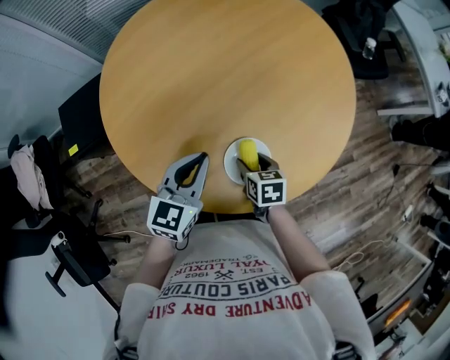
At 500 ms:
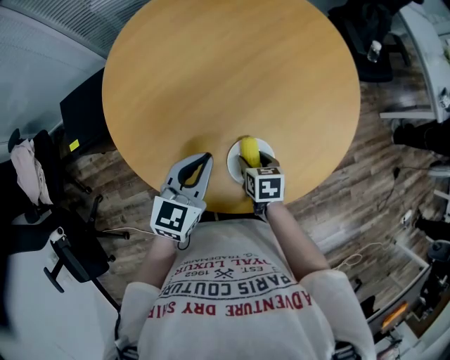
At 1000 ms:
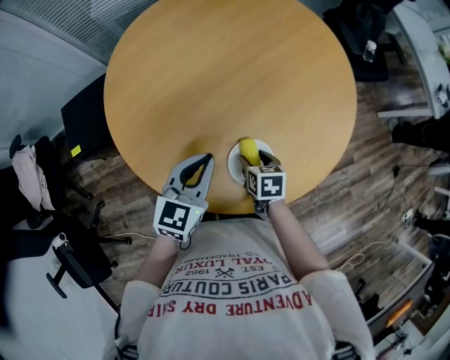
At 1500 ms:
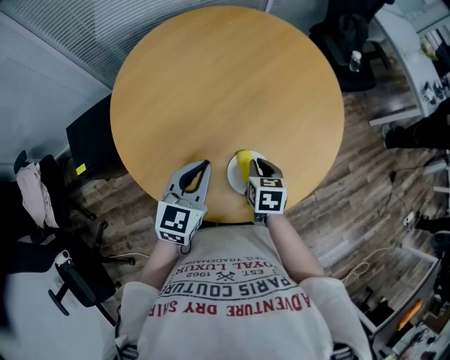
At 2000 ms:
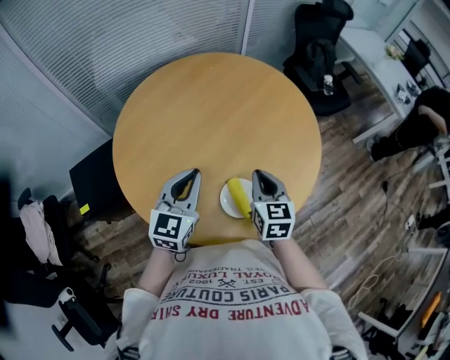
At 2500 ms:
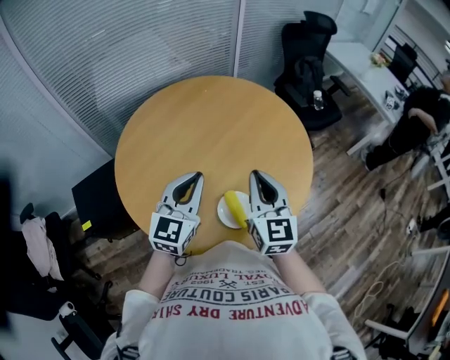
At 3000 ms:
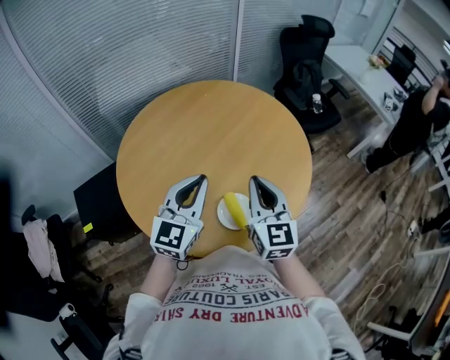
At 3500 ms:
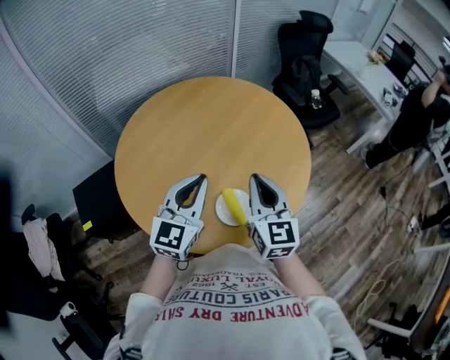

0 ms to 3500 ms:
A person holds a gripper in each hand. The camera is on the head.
0 ms to 2000 ms: The right gripper shifts roughly 20 cm upward, rotates about 40 degrees, and closes up. Meanwhile the left gripper is displaced upward by some 10 cm.
2000 ms to 3500 ms: The right gripper heads upward, covering roughly 10 cm. The left gripper heads upward and to the right, covering roughly 10 cm.

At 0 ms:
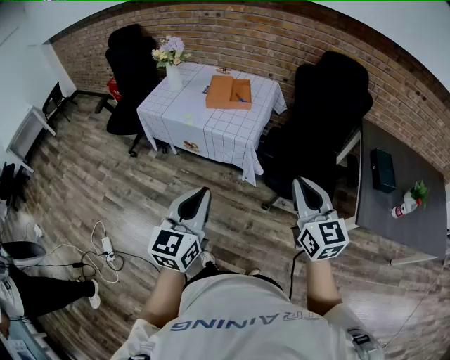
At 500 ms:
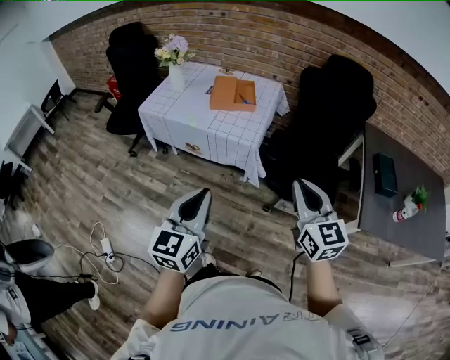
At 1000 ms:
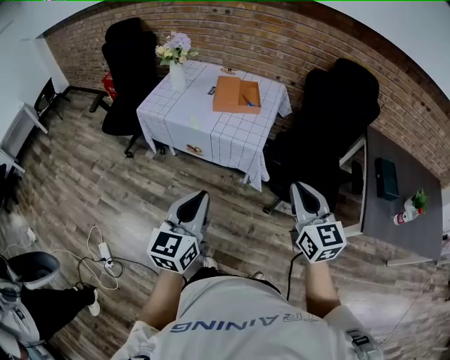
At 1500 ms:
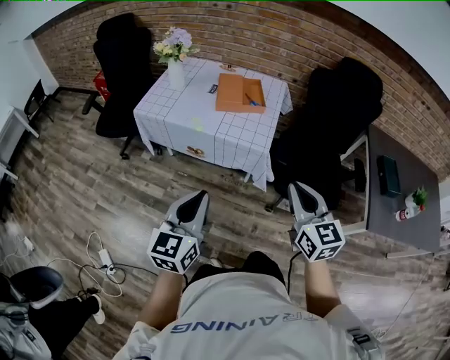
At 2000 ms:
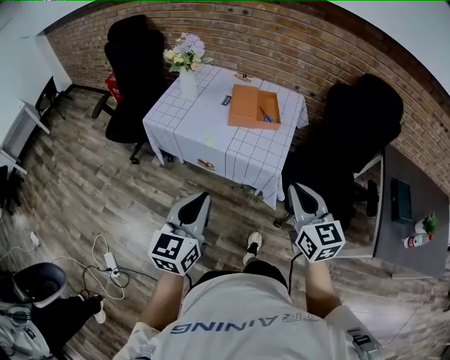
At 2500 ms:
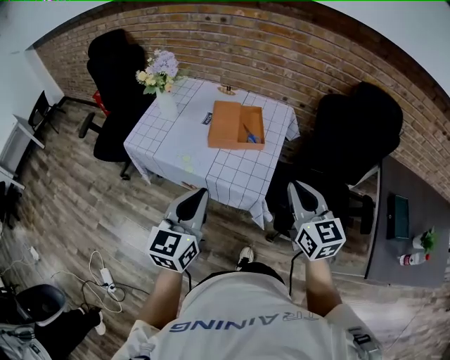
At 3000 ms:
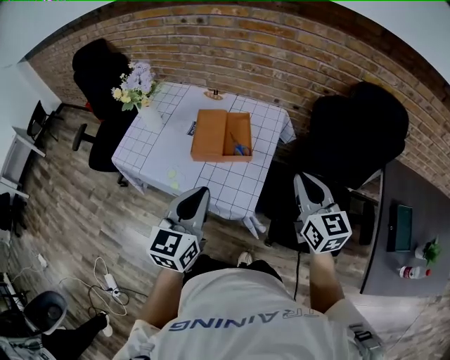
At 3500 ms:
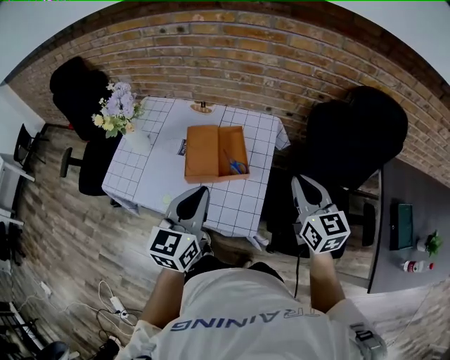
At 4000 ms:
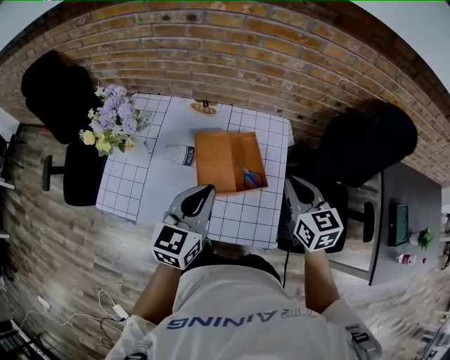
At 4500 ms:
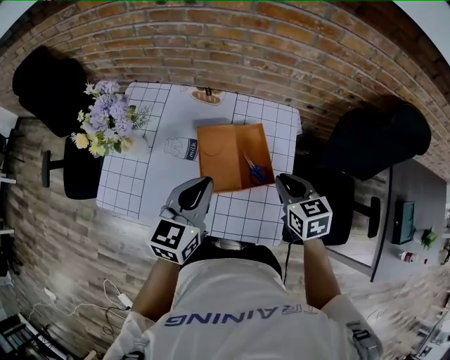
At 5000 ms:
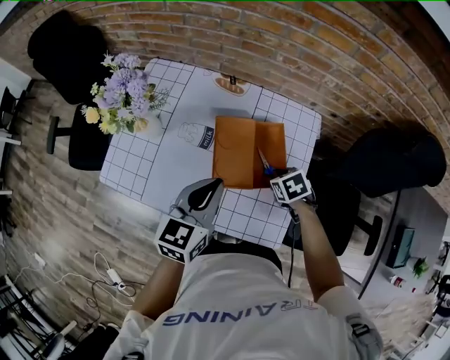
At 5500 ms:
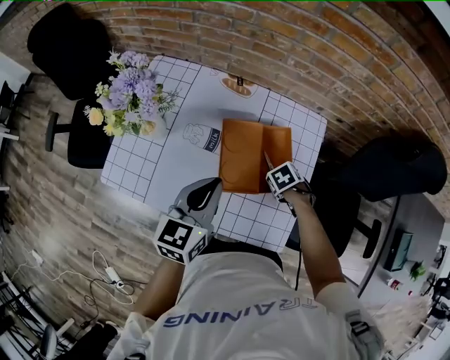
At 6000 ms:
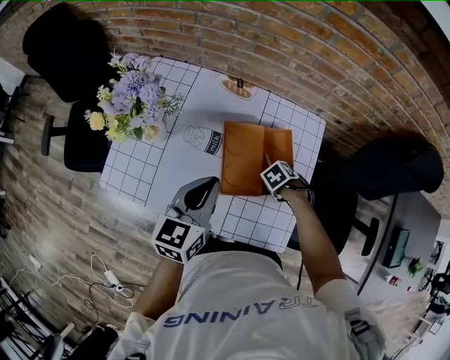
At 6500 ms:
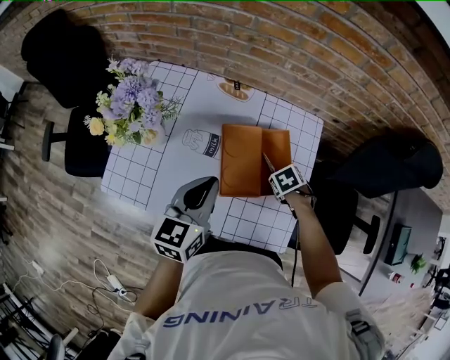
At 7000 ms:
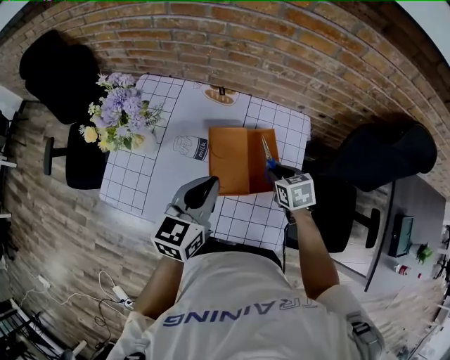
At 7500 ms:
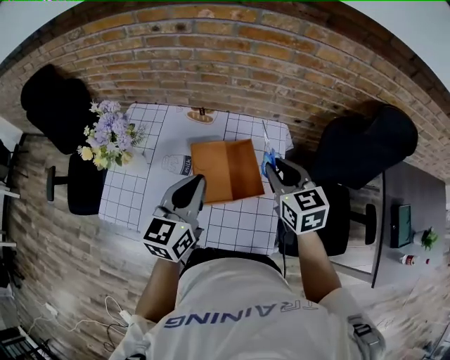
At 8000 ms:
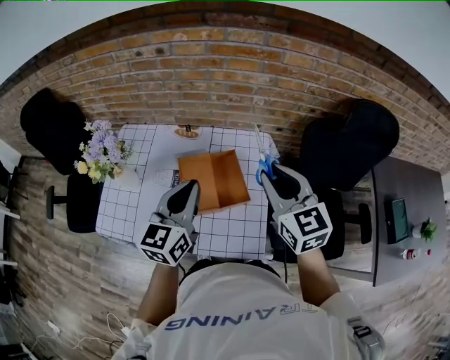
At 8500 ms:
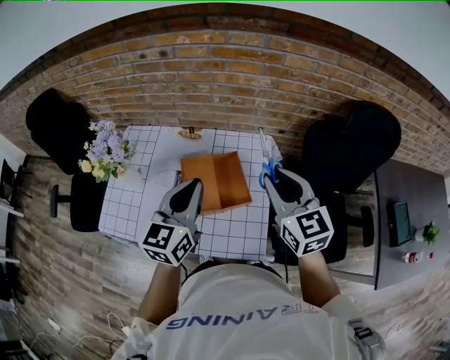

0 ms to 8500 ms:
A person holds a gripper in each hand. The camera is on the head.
0 ms to 2000 ms: The grippers both shift forward and to the left by roughly 25 cm.
2000 ms to 4000 ms: Both grippers are carried forward, approximately 40 cm.
4000 ms to 6500 ms: The left gripper shifts by some 10 cm. The right gripper heads downward, covering roughly 30 cm, angles its fingers downward, by approximately 60 degrees, and opens.
6500 ms to 8500 ms: The right gripper shifts about 40 cm upward, and angles its fingers upward, by about 70 degrees; the left gripper travels upward by about 15 cm.

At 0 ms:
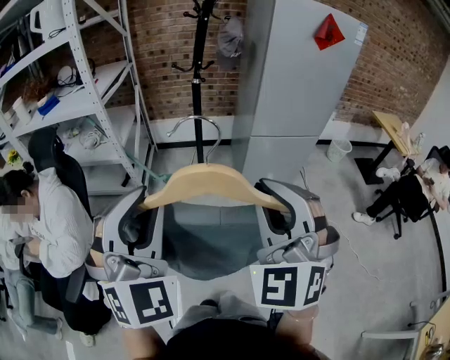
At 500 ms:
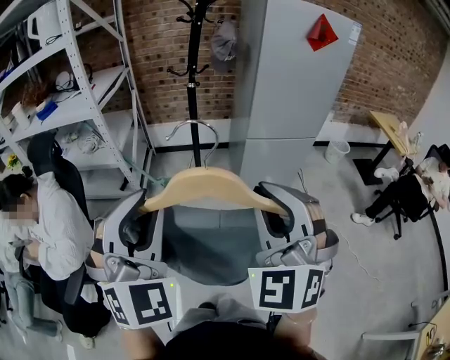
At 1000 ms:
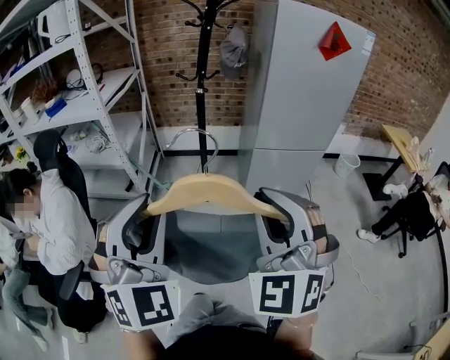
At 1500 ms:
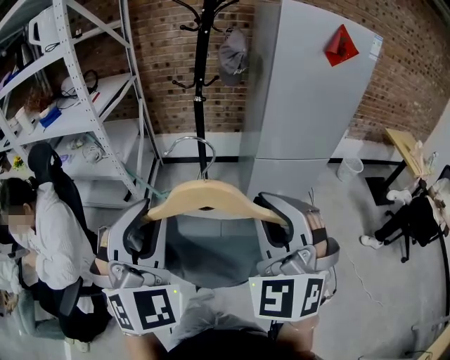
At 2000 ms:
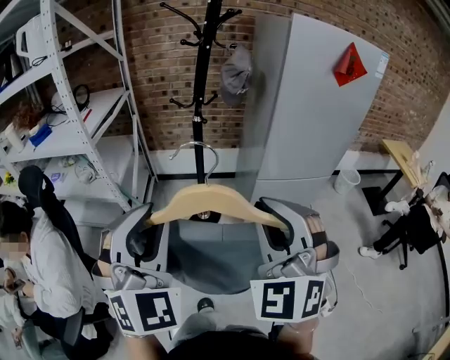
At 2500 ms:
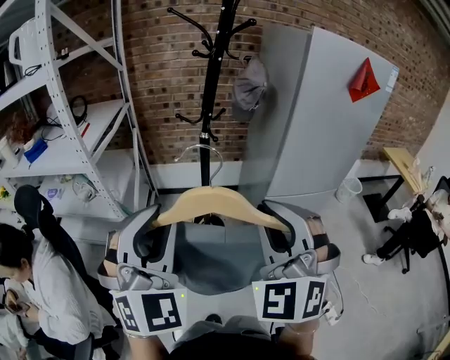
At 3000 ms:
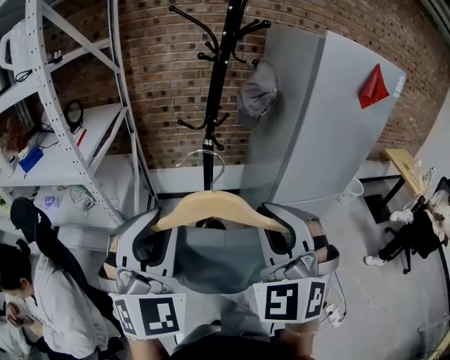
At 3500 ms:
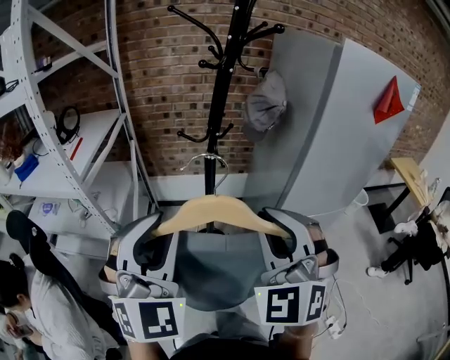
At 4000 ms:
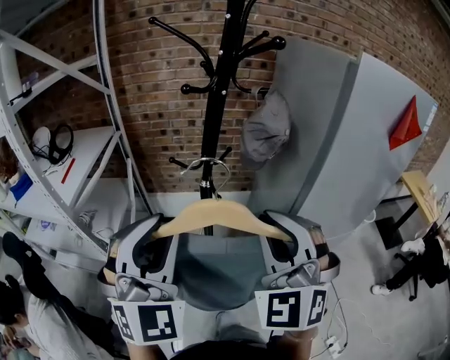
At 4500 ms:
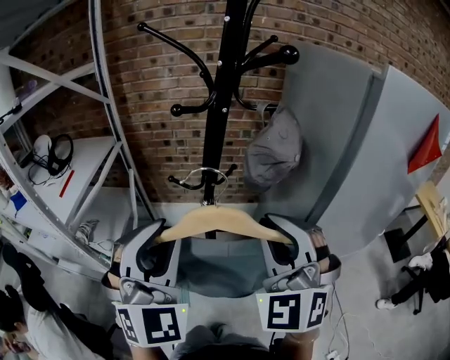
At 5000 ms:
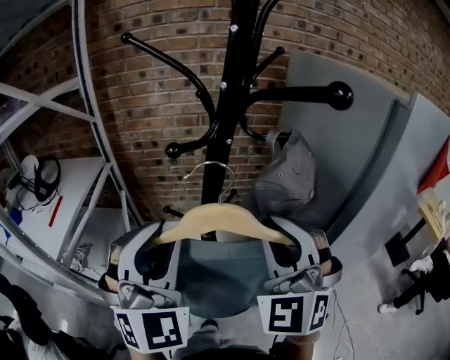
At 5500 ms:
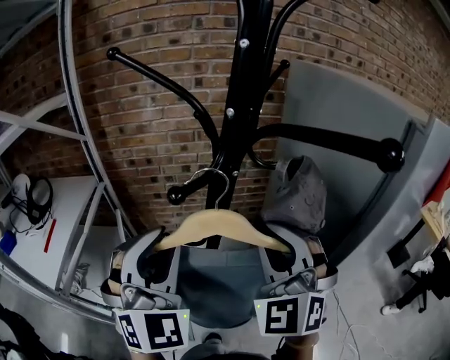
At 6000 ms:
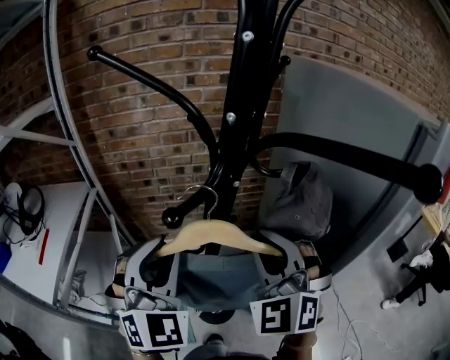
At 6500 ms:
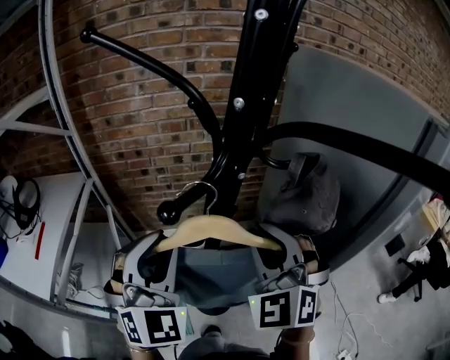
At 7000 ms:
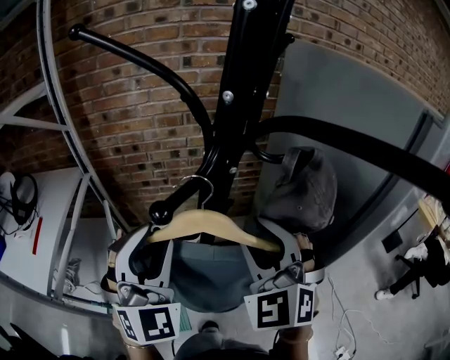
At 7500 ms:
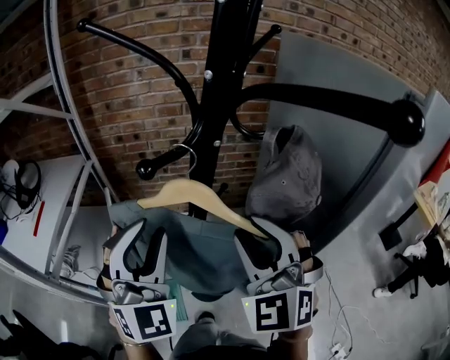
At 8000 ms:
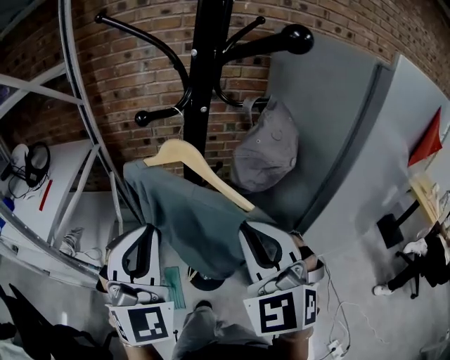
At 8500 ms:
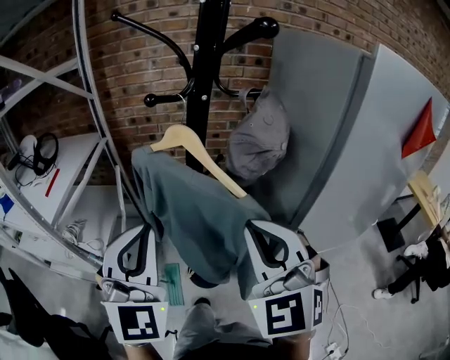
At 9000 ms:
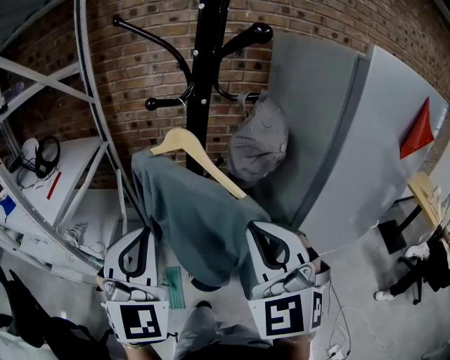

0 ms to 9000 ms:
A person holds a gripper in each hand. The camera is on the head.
0 ms to 2000 ms: The two grippers go some 20 cm forward.
2000 ms to 4500 ms: Both grippers move forward, roughly 40 cm.
4500 ms to 7000 ms: Both grippers travel together forward, about 20 cm. The right gripper opens up.
7000 ms to 9000 ms: The two grippers go some 20 cm backward. The right gripper closes, while the left gripper closes up.

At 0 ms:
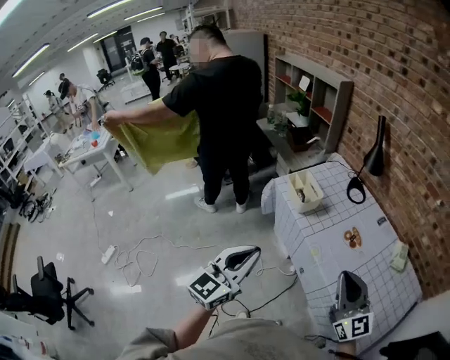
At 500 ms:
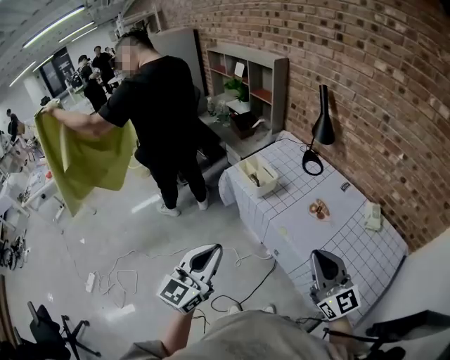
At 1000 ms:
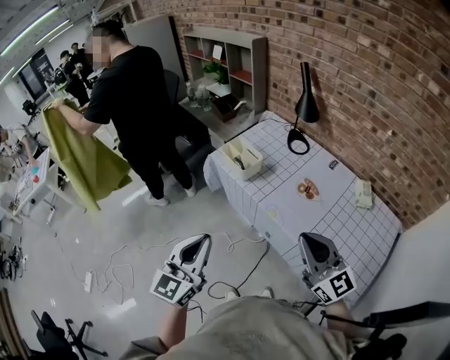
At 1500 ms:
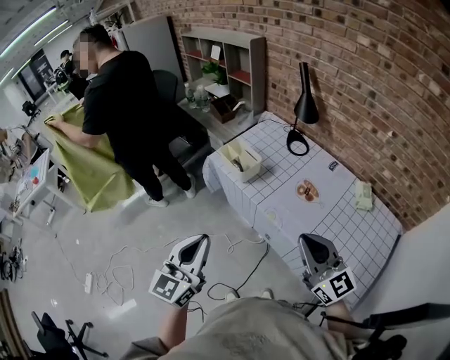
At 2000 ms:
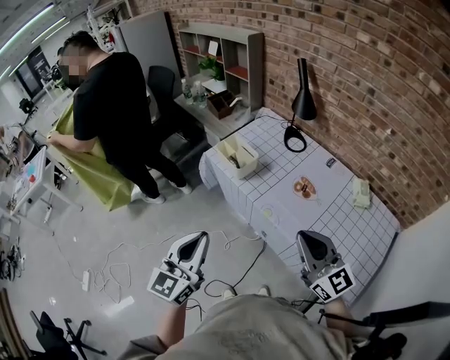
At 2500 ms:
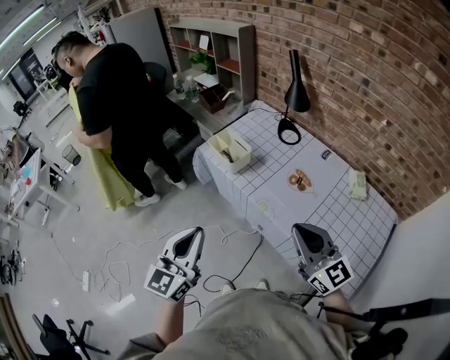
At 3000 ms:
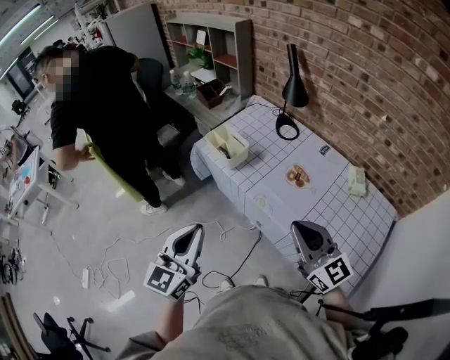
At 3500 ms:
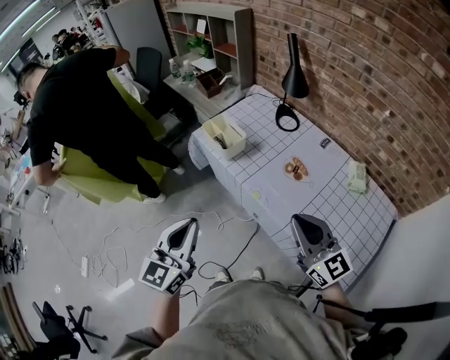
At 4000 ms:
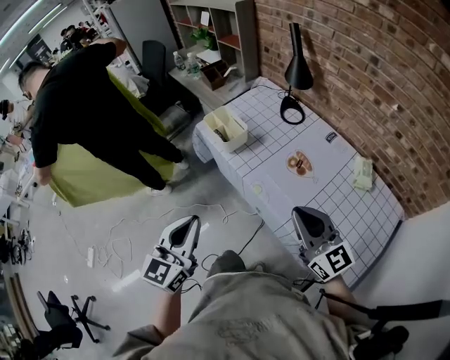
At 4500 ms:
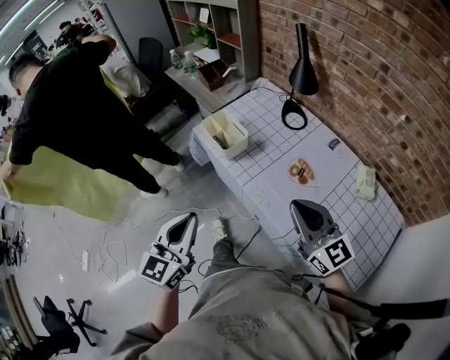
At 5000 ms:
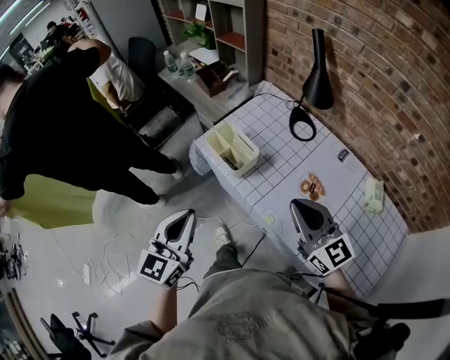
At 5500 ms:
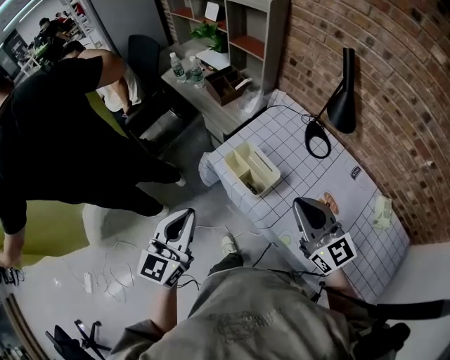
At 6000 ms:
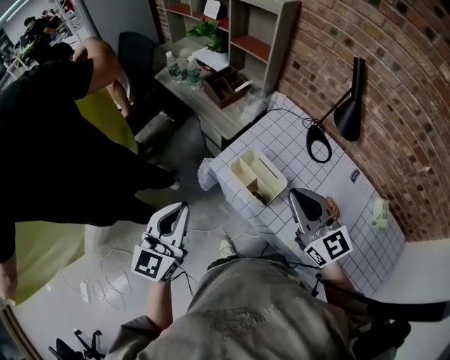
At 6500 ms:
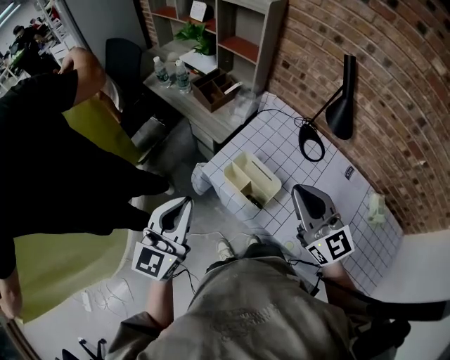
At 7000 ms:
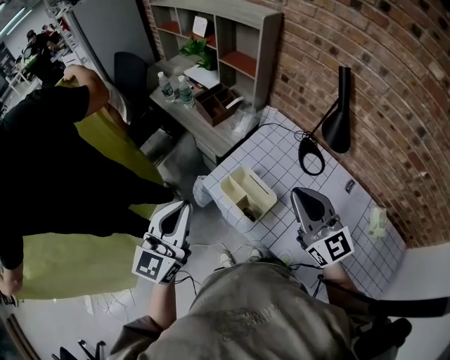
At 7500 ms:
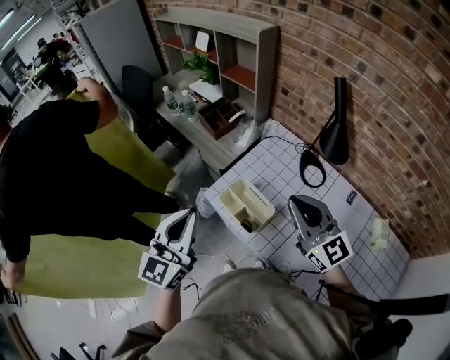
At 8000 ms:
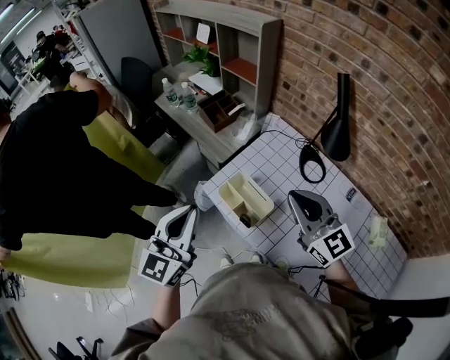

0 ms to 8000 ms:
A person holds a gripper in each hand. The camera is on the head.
0 ms to 2000 ms: The left gripper moves roughly 5 cm.
2000 ms to 4000 ms: Both grippers move to the right, about 5 cm.
4000 ms to 6000 ms: The two grippers travel together, forward and to the left, some 40 cm.
6000 ms to 8000 ms: The left gripper goes about 10 cm to the right and upward. Meanwhile the right gripper moves to the right, some 5 cm.
